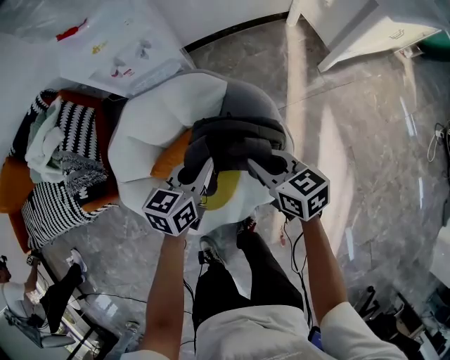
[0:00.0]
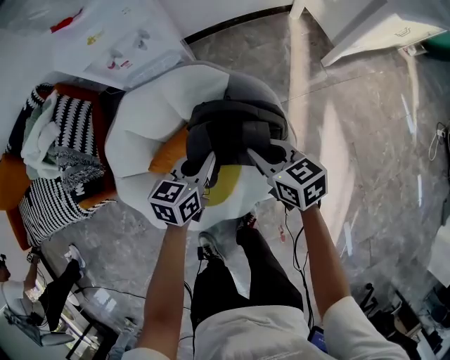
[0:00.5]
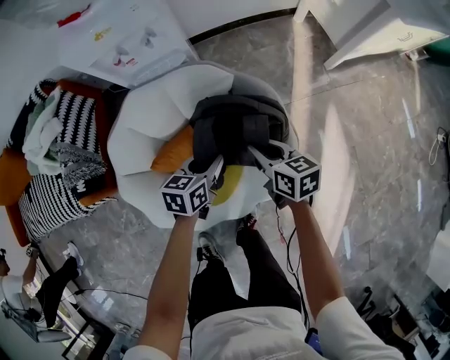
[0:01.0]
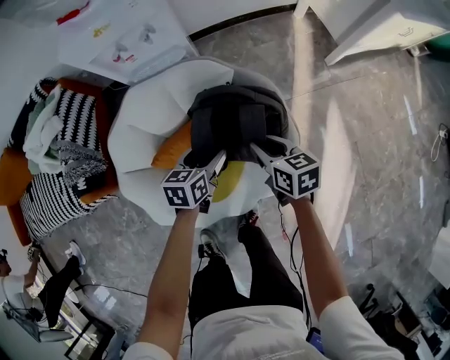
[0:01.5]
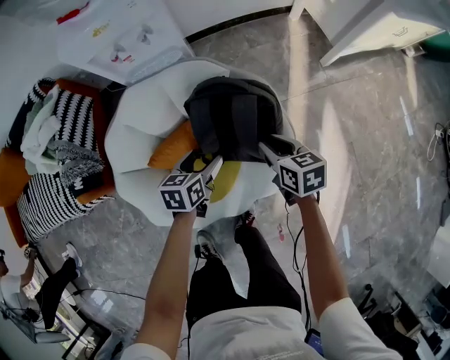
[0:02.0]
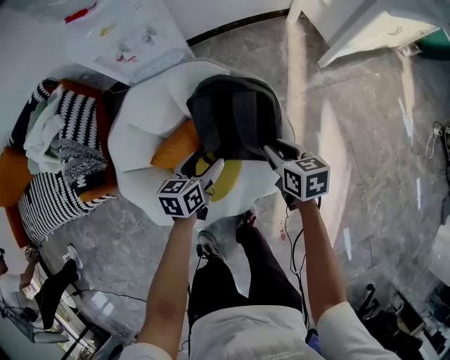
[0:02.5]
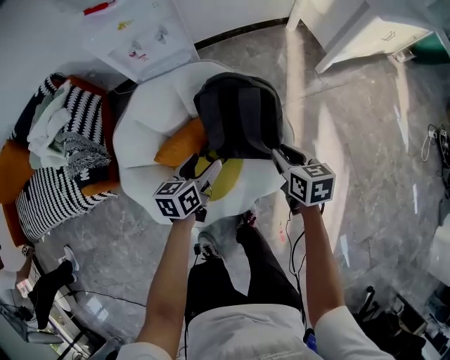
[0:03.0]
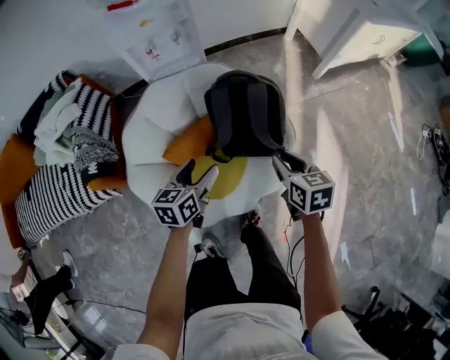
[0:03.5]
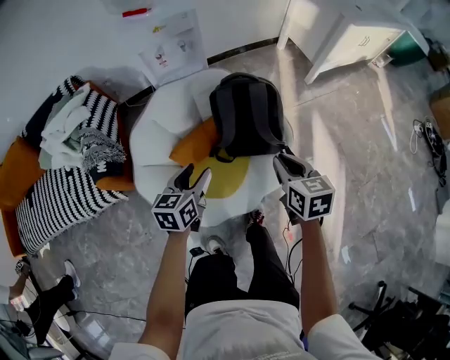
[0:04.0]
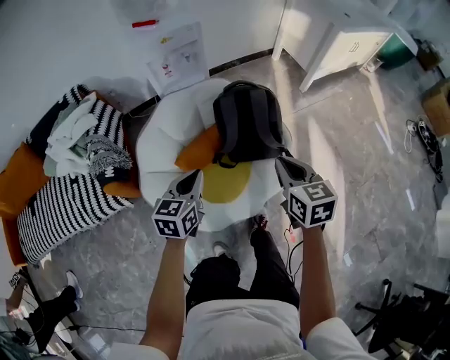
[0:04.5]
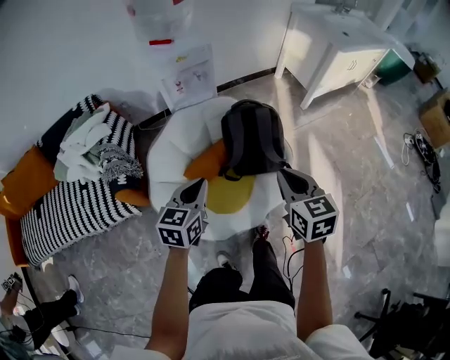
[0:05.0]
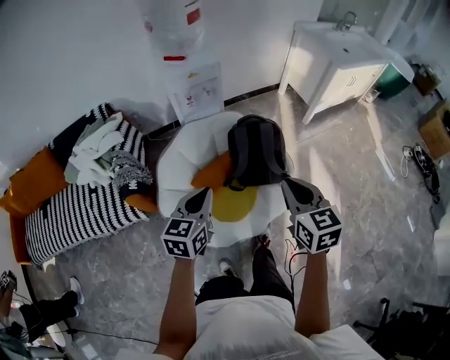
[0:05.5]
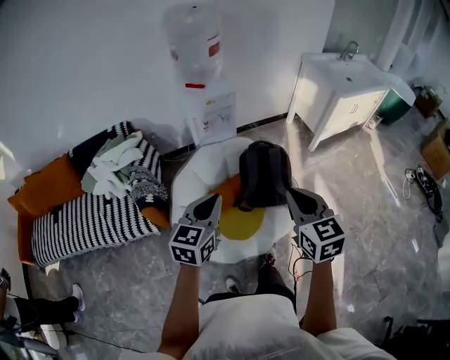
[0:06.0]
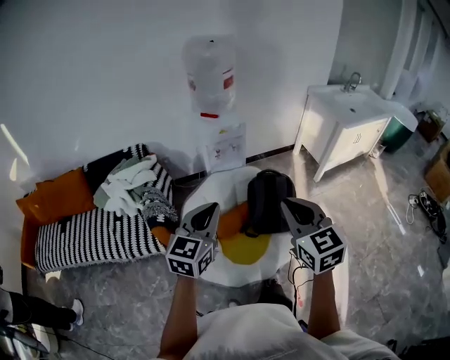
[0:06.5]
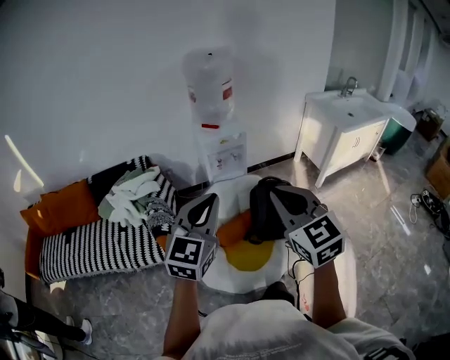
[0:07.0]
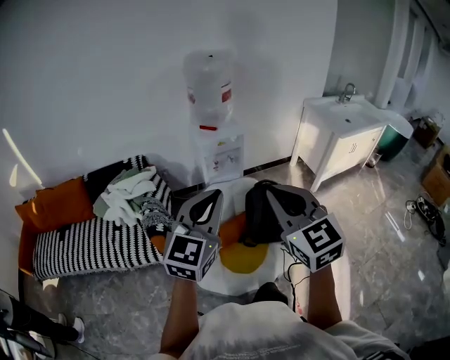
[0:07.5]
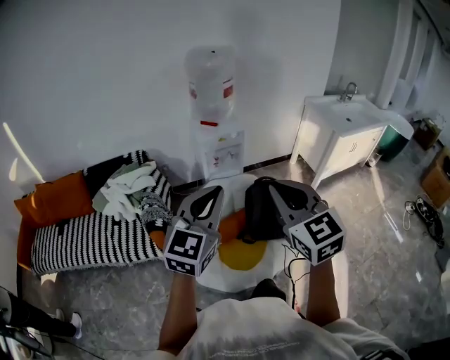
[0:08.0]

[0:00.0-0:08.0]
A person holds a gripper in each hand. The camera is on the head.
0:00.0 to 0:02.0: Both grippers move downward, some 10 cm. The left gripper opens up.
0:02.0 to 0:04.0: The right gripper travels backward and upward by some 25 cm, while the left gripper travels backward, upward and to the left by some 25 cm.
0:04.0 to 0:06.0: Both grippers move upward, roughly 30 cm. The left gripper changes its angle by roughly 20 degrees, and closes up; the right gripper changes its angle by some 20 degrees.
0:06.0 to 0:08.0: The left gripper is displaced upward by approximately 20 cm, and changes its angle by about 20 degrees. Meanwhile the right gripper heads upward and to the left, covering some 15 cm, and changes its angle by approximately 20 degrees.

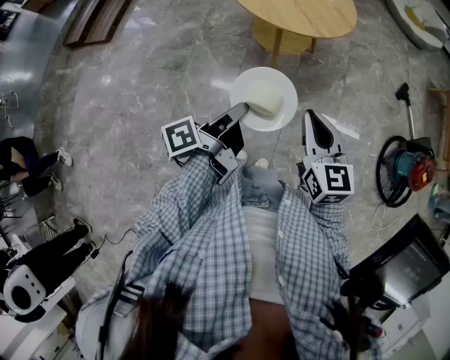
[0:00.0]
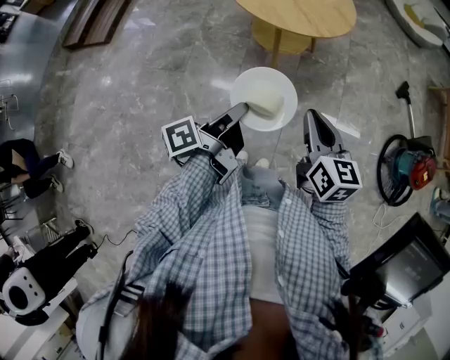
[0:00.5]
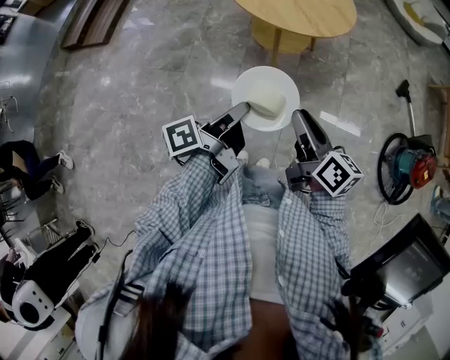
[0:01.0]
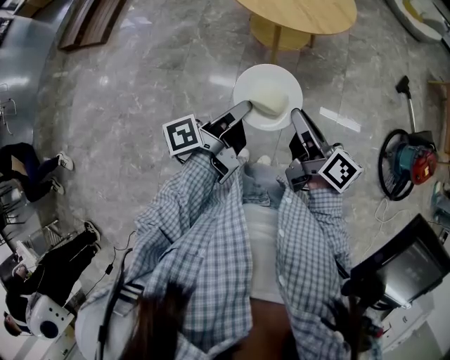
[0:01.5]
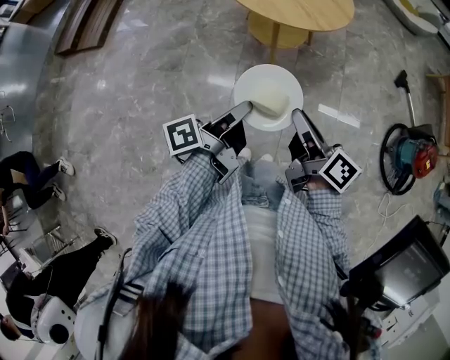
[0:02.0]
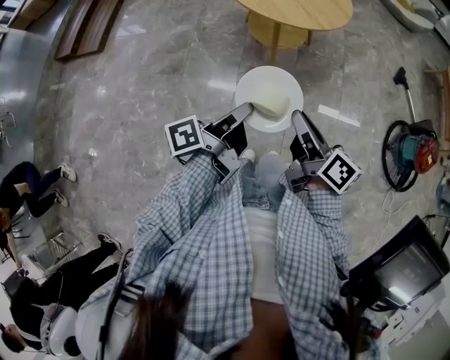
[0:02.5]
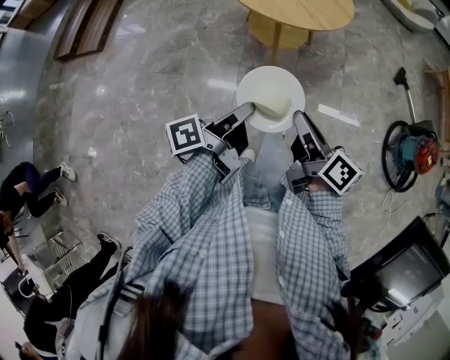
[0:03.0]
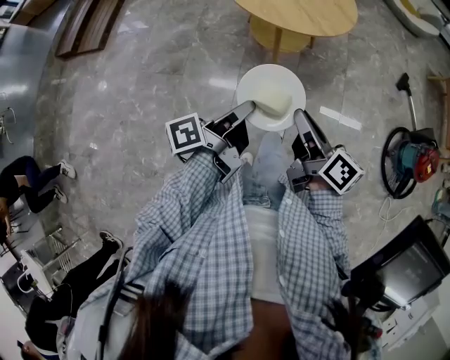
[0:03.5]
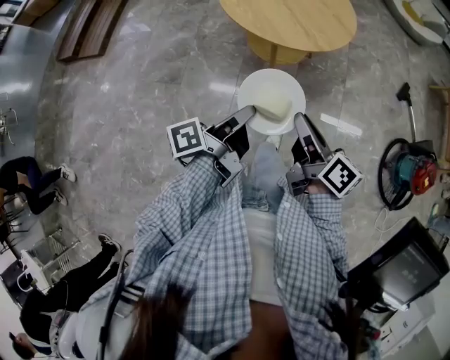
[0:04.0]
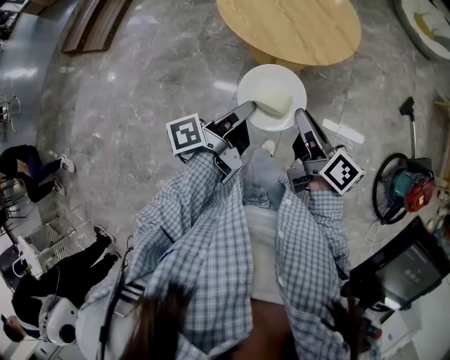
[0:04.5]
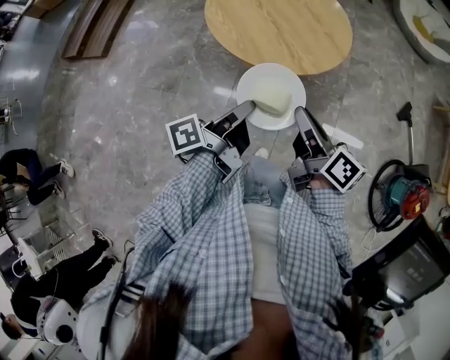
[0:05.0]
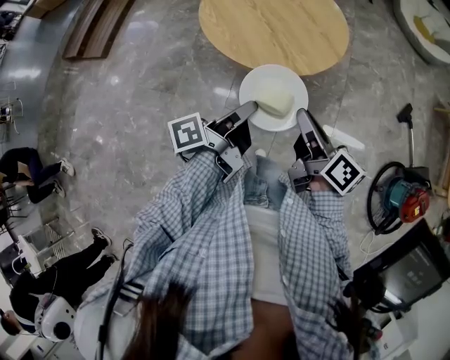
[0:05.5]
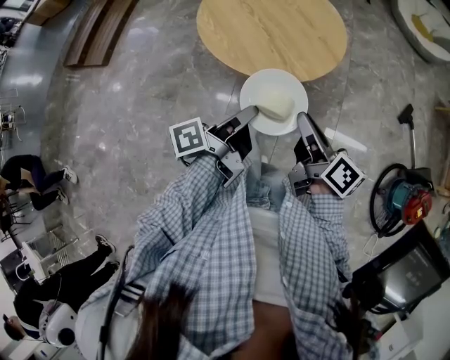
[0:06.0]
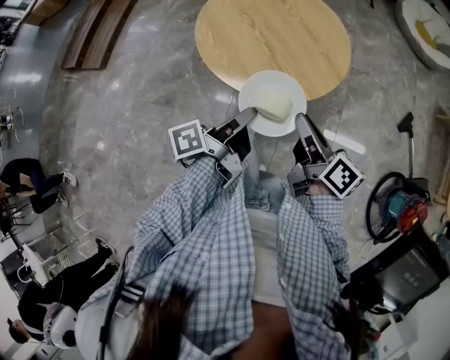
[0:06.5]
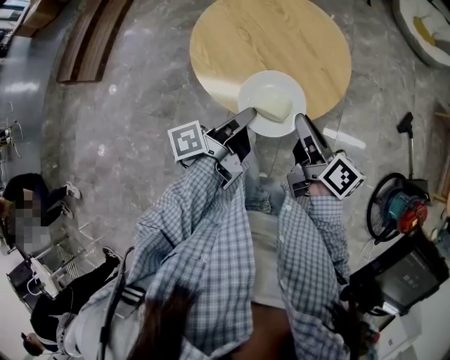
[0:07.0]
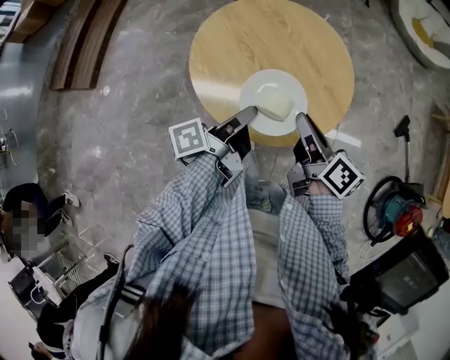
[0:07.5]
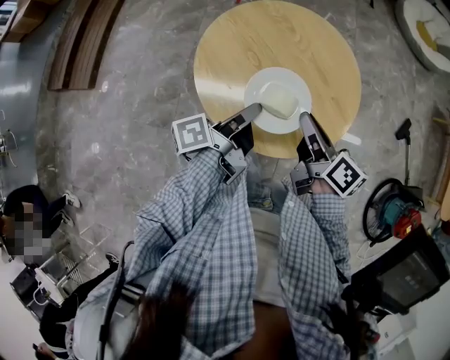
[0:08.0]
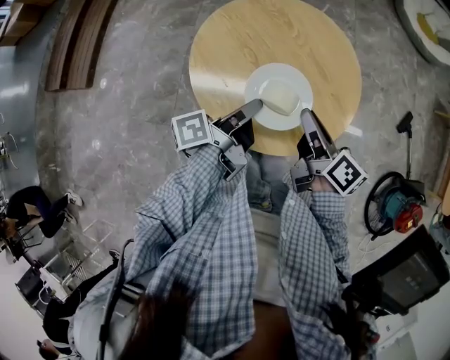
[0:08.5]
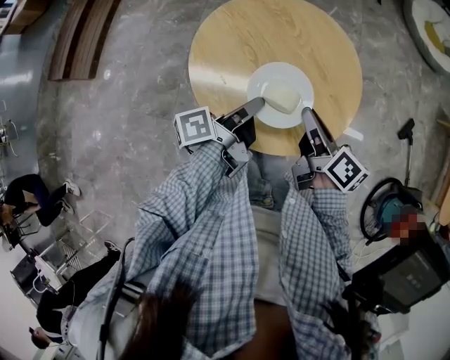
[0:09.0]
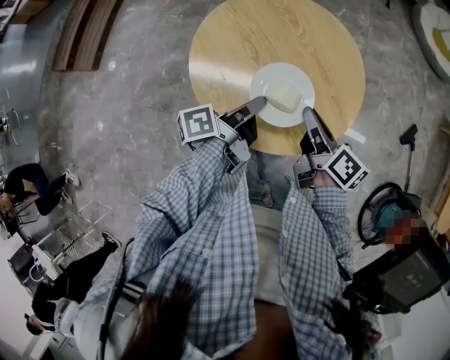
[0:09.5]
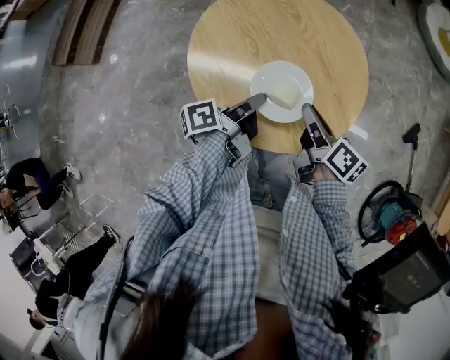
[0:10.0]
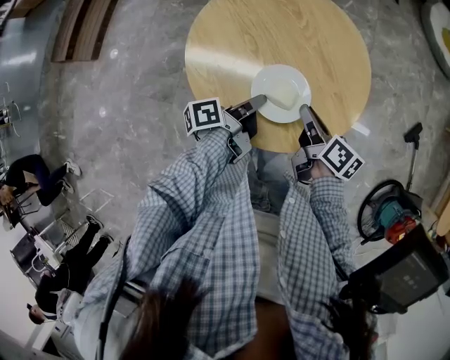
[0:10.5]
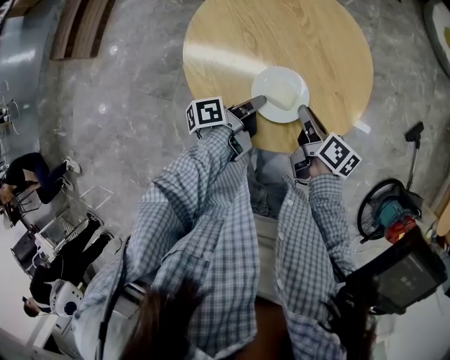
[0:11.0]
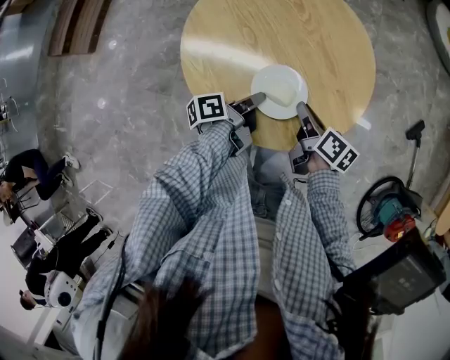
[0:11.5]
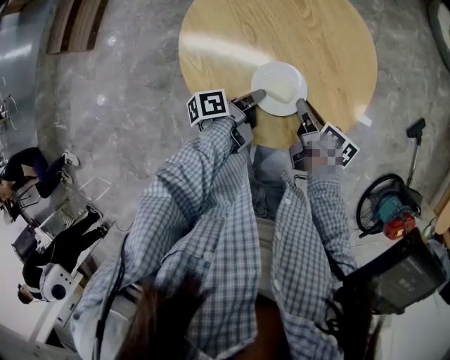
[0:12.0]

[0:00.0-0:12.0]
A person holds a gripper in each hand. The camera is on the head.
0:00.0 to 0:02.0: The right gripper twists roughly 50 degrees clockwise, seen from behind.
0:02.0 to 0:04.0: The right gripper changes place by some 10 cm.
0:04.0 to 0:06.0: The right gripper changes place by some 15 cm.
0:06.0 to 0:08.0: The right gripper moves about 25 cm.
0:08.0 to 0:10.0: The right gripper shifts about 5 cm downward.
0:10.0 to 0:12.0: The right gripper is displaced downward by some 10 cm.

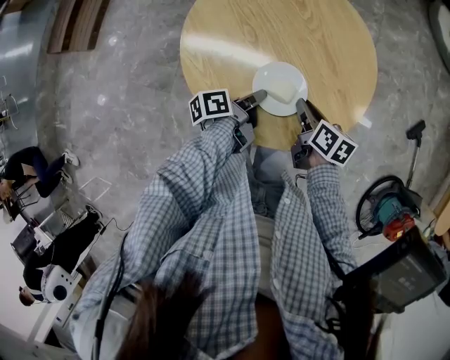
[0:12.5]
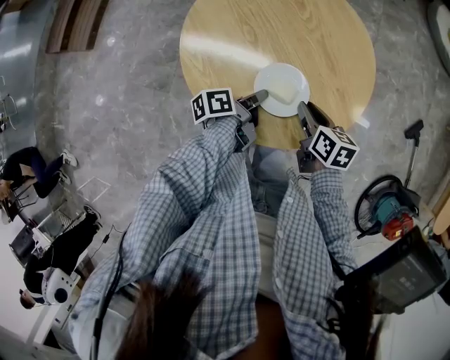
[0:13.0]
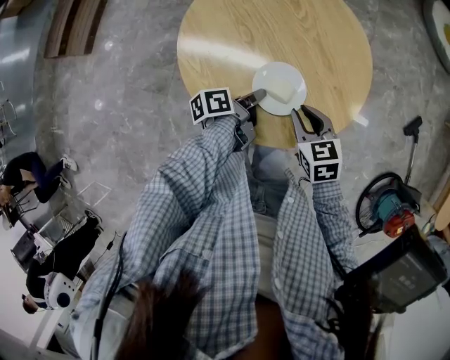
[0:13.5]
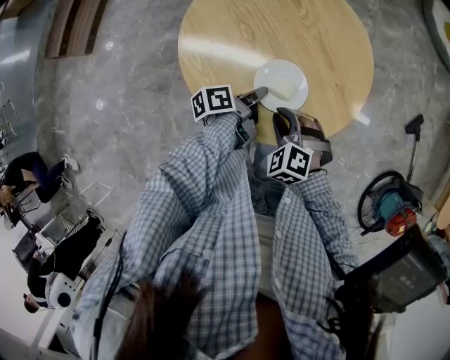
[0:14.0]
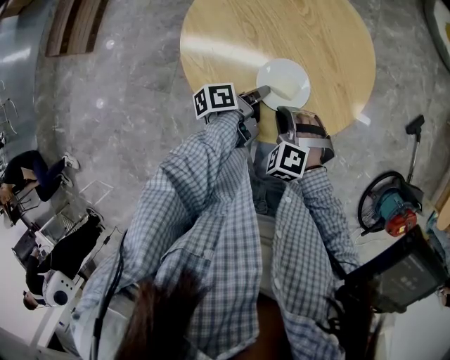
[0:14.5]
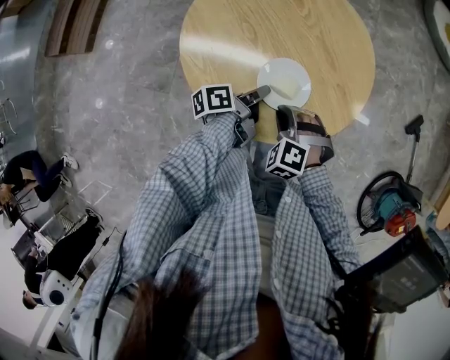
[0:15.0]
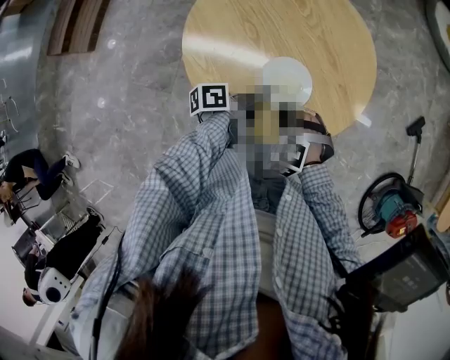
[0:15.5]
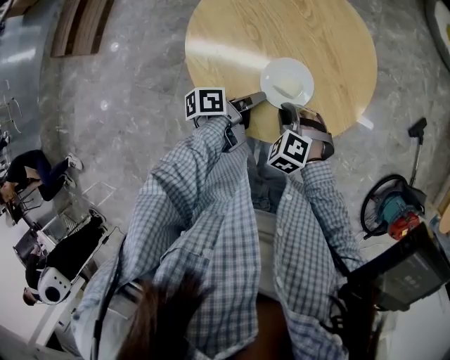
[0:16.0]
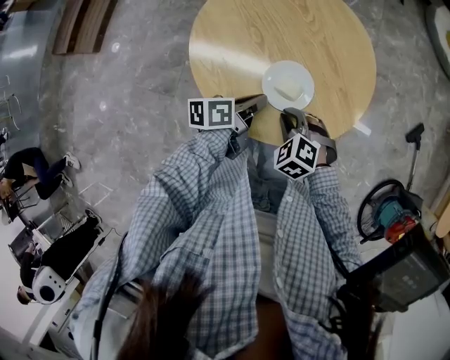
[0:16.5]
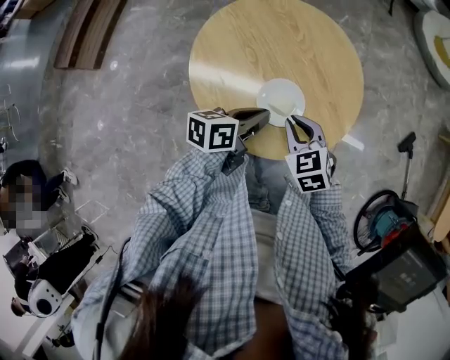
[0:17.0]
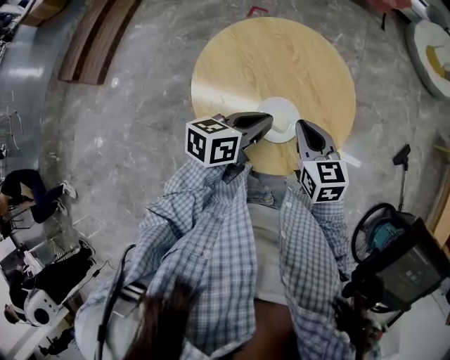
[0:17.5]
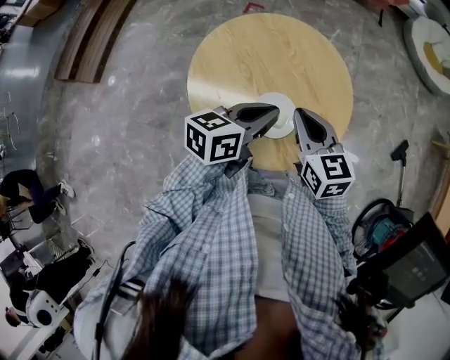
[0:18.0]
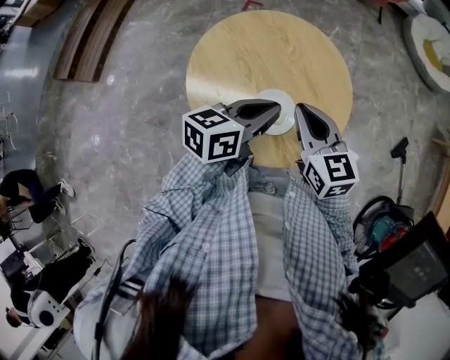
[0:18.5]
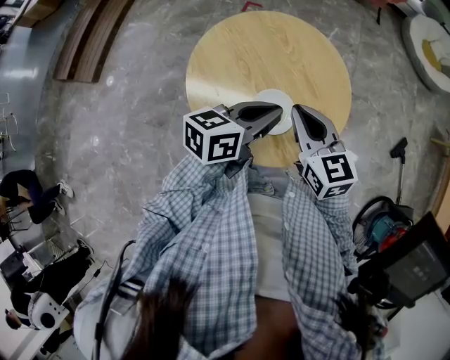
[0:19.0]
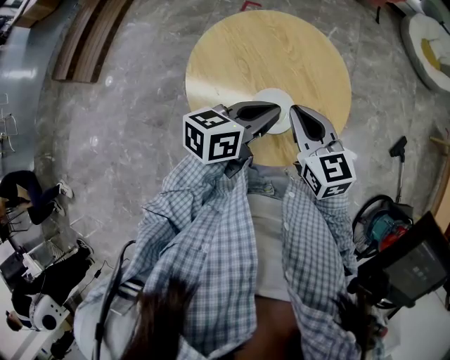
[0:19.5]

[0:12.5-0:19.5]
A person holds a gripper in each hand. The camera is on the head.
0:12.5 to 0:14.5: The right gripper changes place by roughly 10 cm, and twists approximately 100 degrees counterclockwise, seen from behind.
0:16.0 to 0:17.5: The right gripper travels upward by roughly 15 cm, and twists roughly 50 degrees clockwise, seen from behind.
0:17.5 to 0:19.5: The right gripper is displaced upward by approximately 5 cm.
